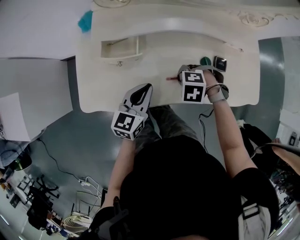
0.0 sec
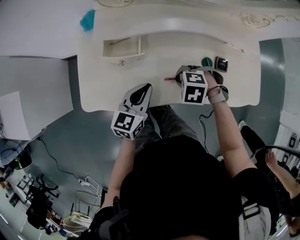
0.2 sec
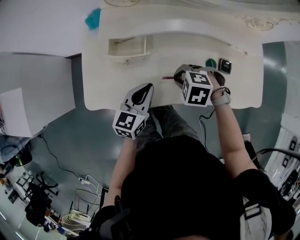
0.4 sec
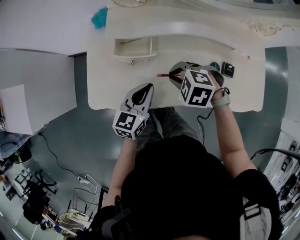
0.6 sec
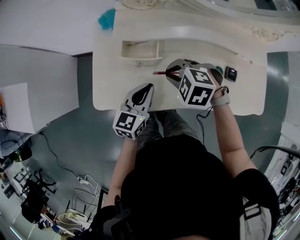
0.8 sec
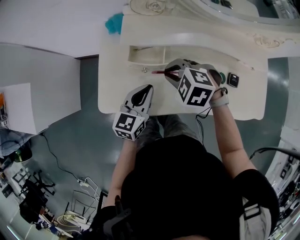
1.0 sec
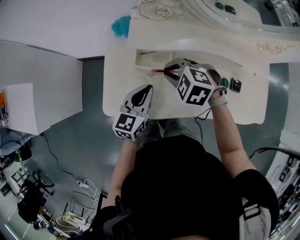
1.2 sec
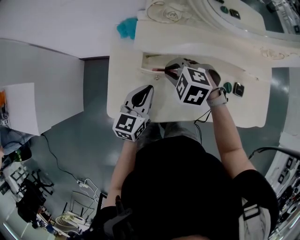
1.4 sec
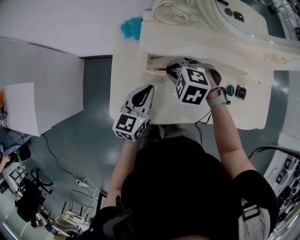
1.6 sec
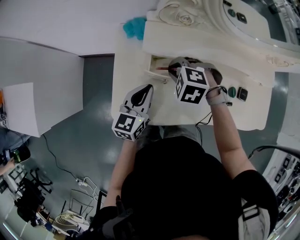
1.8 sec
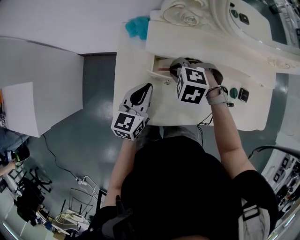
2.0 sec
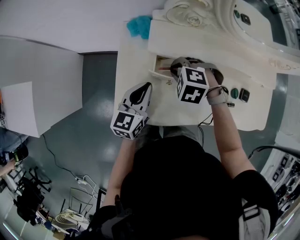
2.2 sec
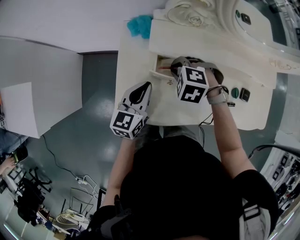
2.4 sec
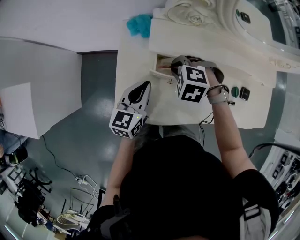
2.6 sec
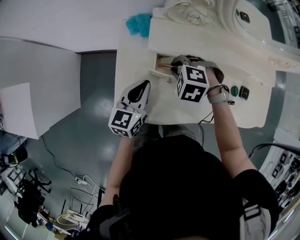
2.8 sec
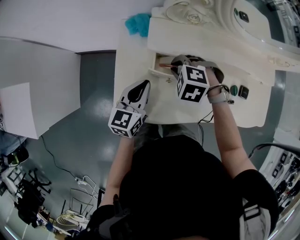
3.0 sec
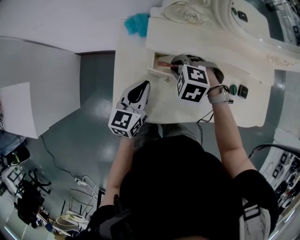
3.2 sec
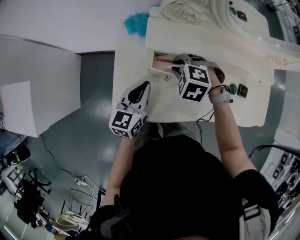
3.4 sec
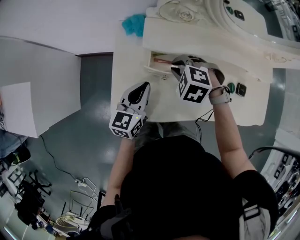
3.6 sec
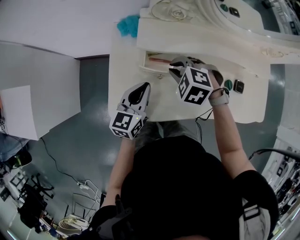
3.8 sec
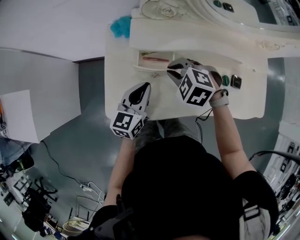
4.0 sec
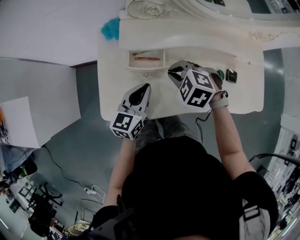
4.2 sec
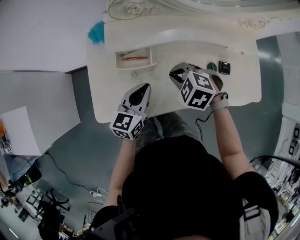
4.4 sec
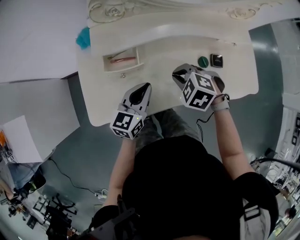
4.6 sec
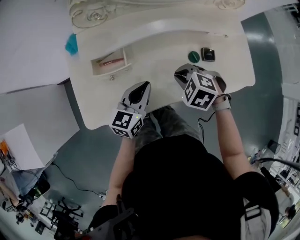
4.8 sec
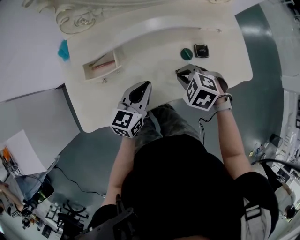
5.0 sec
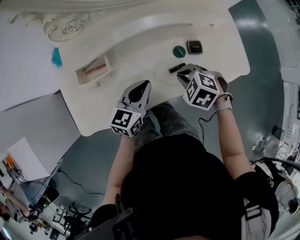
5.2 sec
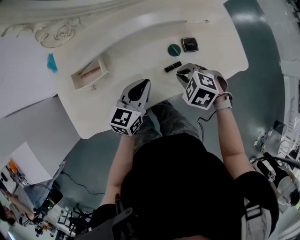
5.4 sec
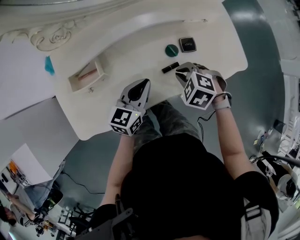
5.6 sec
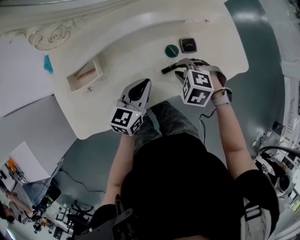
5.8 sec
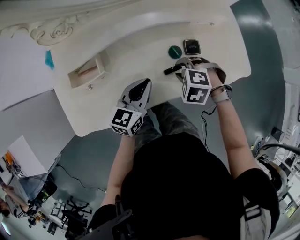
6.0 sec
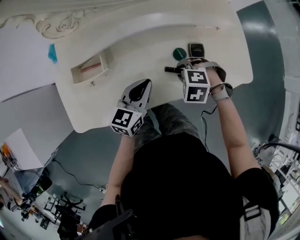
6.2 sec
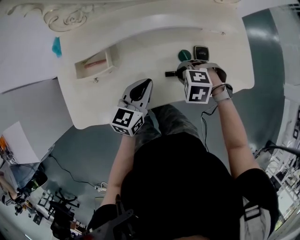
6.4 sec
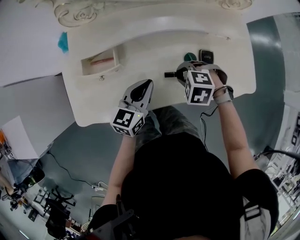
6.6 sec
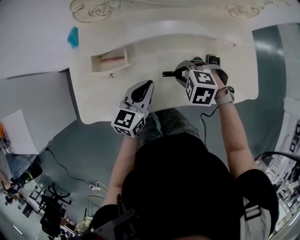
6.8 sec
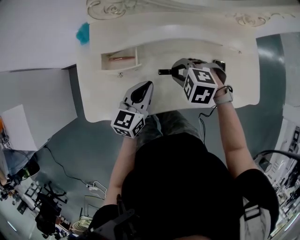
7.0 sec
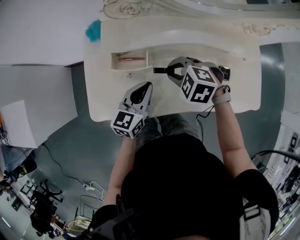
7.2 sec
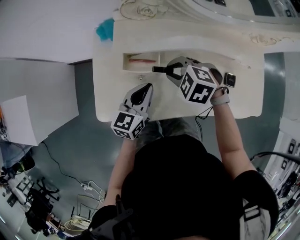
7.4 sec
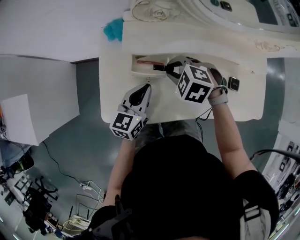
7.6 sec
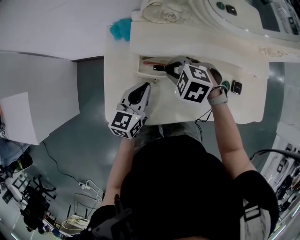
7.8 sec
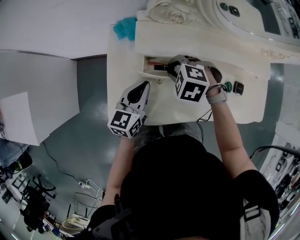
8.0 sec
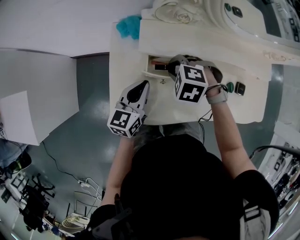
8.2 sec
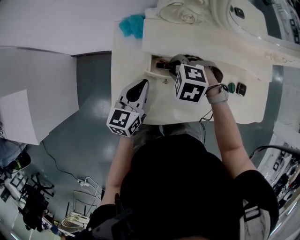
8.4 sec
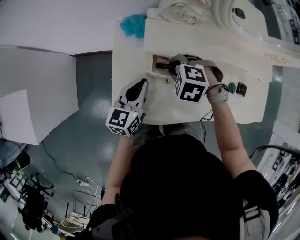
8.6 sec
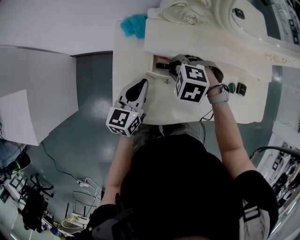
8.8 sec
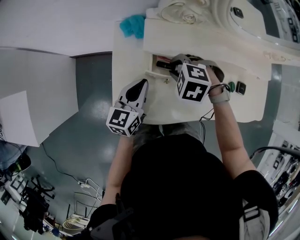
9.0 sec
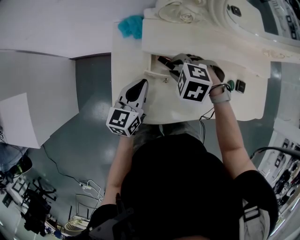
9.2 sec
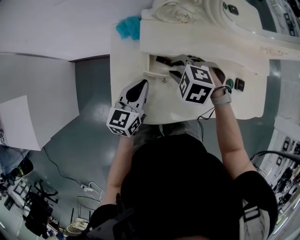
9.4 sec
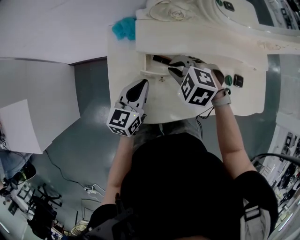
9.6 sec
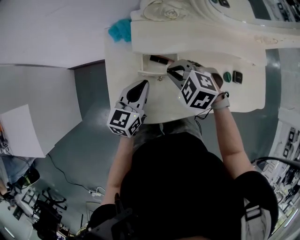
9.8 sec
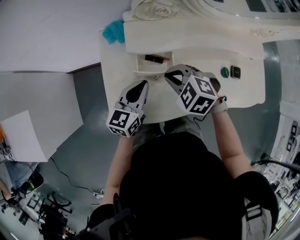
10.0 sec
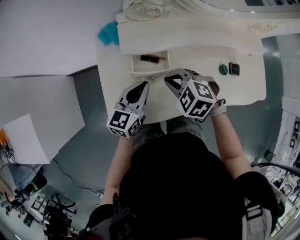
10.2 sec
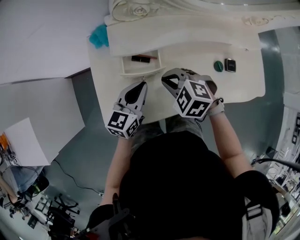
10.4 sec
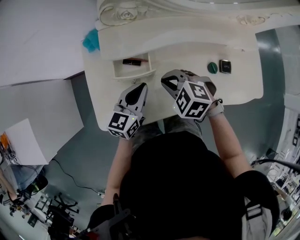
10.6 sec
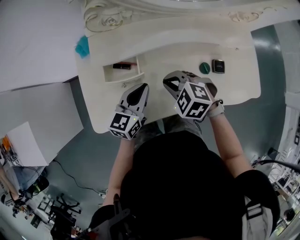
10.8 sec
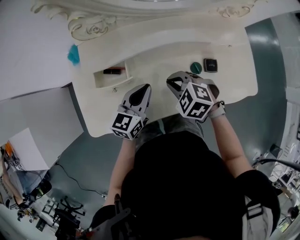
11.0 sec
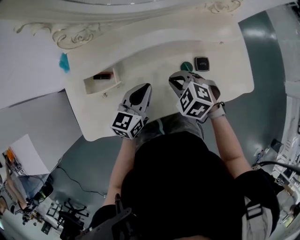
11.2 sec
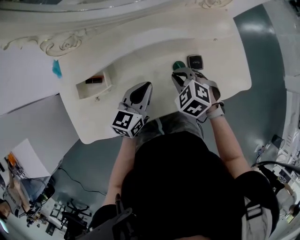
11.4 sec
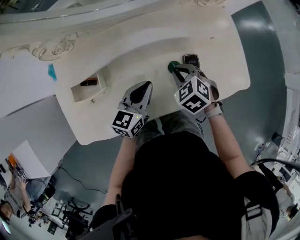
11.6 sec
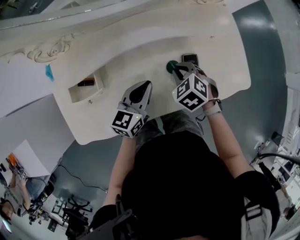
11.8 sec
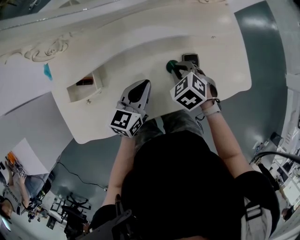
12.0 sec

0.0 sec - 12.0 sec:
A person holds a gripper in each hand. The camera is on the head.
0.0 sec - 1.6 sec: The left gripper ends up approximately 15 cm from where it was. The right gripper moves some 25 cm, and swivels approximately 20 degrees.
1.6 sec - 3.0 sec: The left gripper ends up roughly 5 cm from where it was.
3.0 sec - 4.4 sec: The left gripper ends up approximately 15 cm from where it was; the right gripper changes place by approximately 15 cm.
4.4 sec - 6.0 sec: The right gripper shifts by some 20 cm. The left gripper shifts by roughly 20 cm.
6.0 sec - 7.6 sec: The right gripper changes place by roughly 30 cm; the left gripper ends up some 20 cm from where it was, and changes its angle by roughly 20 degrees.
7.6 sec - 9.0 sec: The left gripper changes place by about 10 cm; the right gripper moves approximately 5 cm.
9.0 sec - 10.4 sec: The right gripper moves roughly 10 cm, and changes its angle by some 20 degrees. Meanwhile the left gripper ends up about 10 cm from where it was.
10.4 sec - 12.0 sec: Both grippers move to the right, some 25 cm. The right gripper changes its angle by roughly 30 degrees.

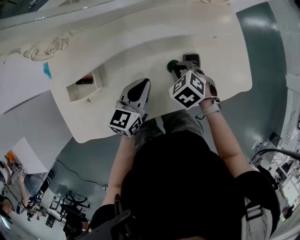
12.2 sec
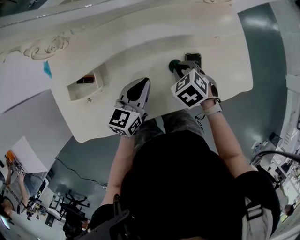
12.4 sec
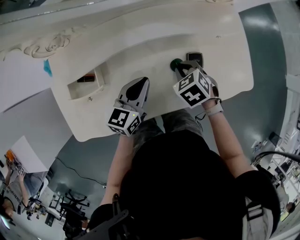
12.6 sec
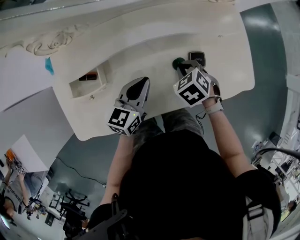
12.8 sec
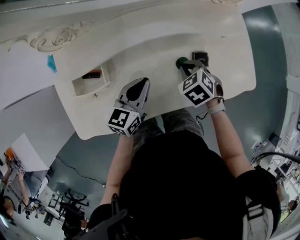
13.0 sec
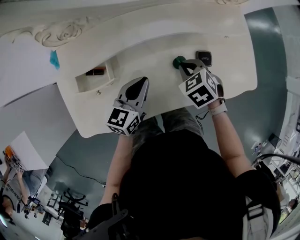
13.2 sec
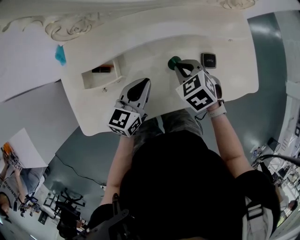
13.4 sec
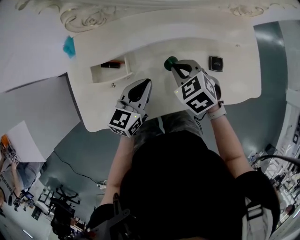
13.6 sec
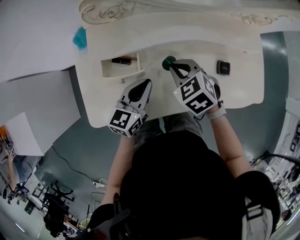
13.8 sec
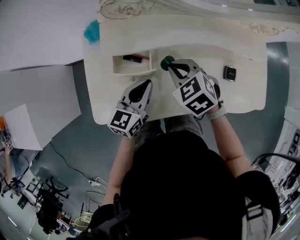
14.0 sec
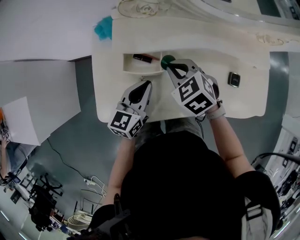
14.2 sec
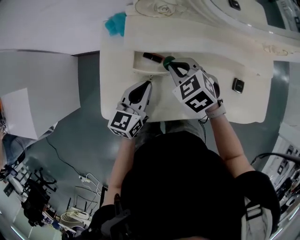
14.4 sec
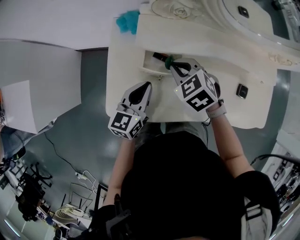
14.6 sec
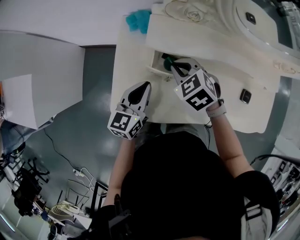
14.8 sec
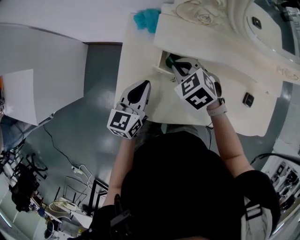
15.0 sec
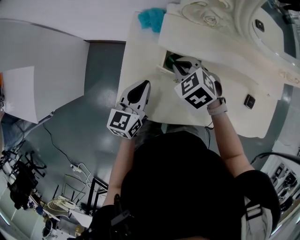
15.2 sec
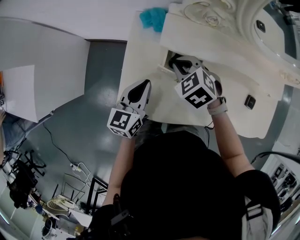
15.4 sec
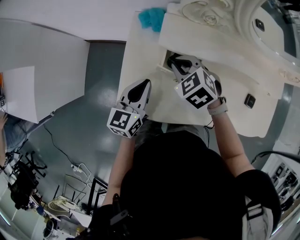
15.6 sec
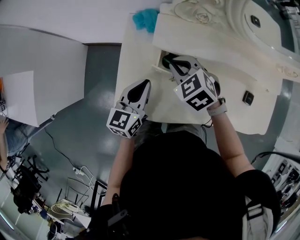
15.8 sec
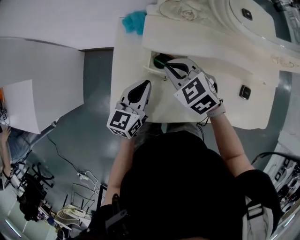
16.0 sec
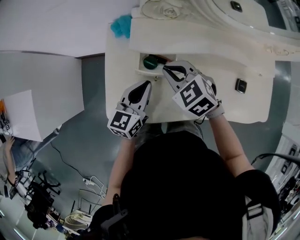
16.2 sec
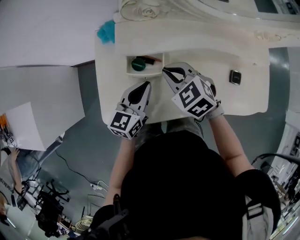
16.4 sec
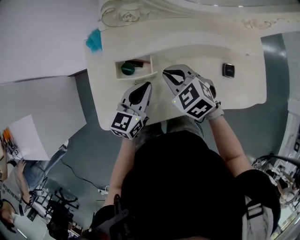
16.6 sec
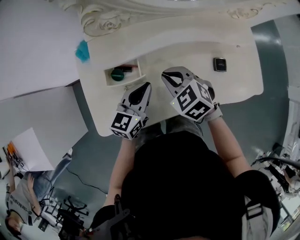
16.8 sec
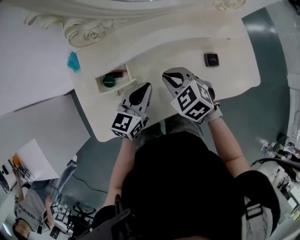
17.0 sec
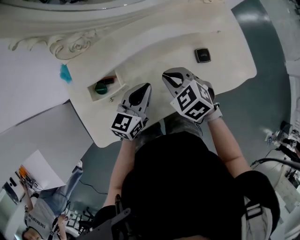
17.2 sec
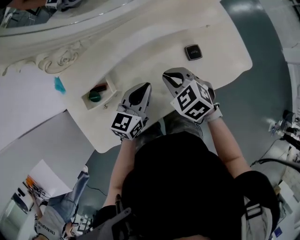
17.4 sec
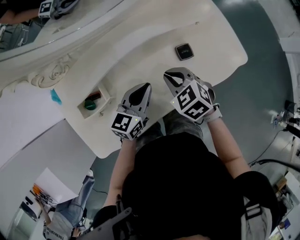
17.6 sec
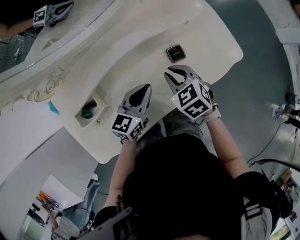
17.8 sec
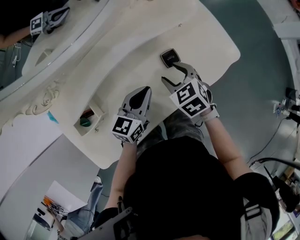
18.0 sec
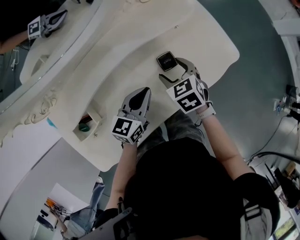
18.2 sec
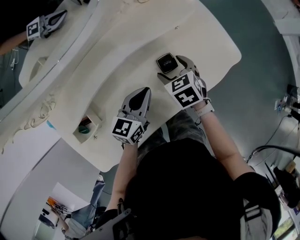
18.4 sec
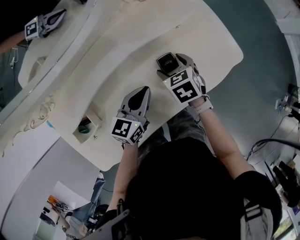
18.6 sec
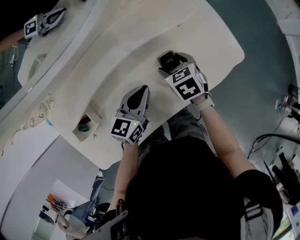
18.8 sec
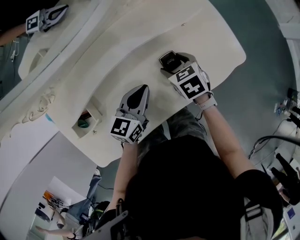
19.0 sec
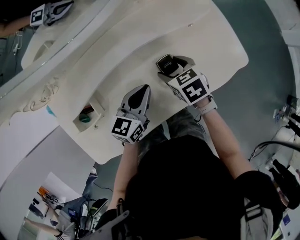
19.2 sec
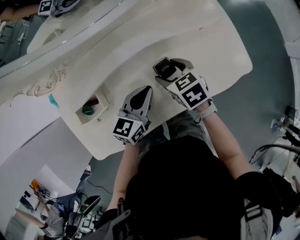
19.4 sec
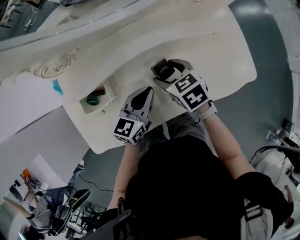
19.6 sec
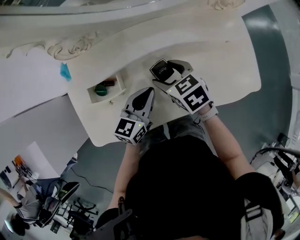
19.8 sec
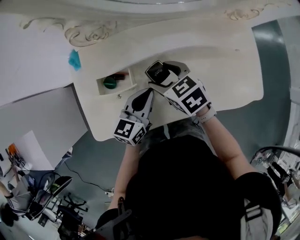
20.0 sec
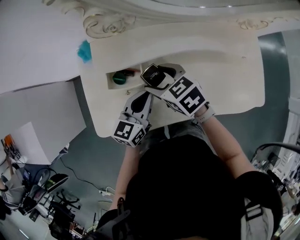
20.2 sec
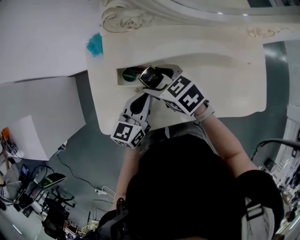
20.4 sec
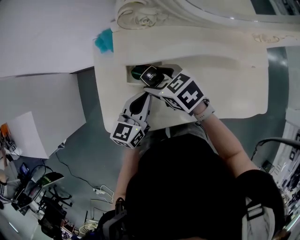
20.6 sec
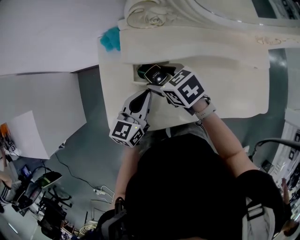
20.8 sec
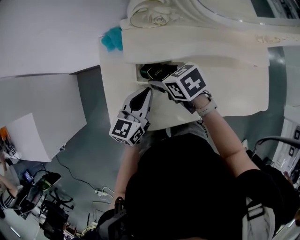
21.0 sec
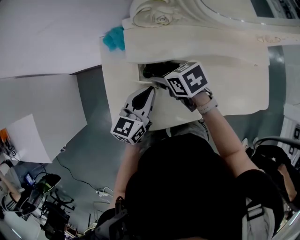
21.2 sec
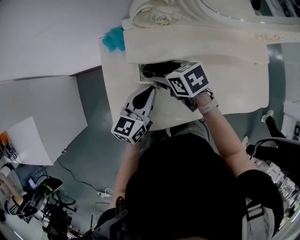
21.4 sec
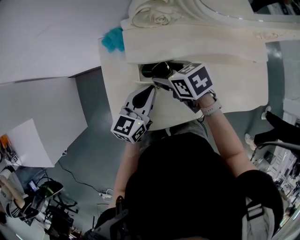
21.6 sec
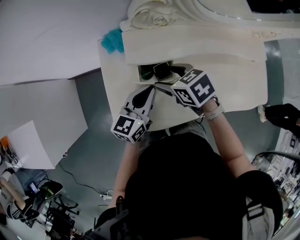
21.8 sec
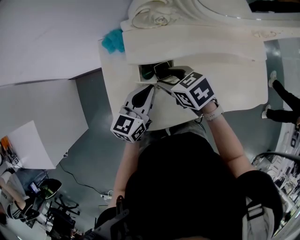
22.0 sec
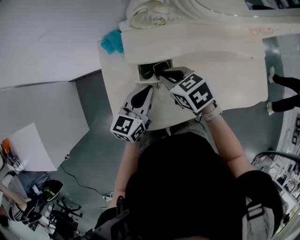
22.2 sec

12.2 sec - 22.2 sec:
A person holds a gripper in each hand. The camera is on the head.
12.2 sec - 13.6 sec: The right gripper is displaced to the left and upward by roughly 15 cm. The left gripper heads to the left, covering approximately 10 cm.
13.6 sec - 15.0 sec: The grippers both shift to the left by about 25 cm. The left gripper turns by about 20 degrees; the right gripper swivels about 20 degrees.
15.0 sec - 16.4 sec: Both grippers travel together to the right, roughly 10 cm.
16.4 sec - 18.0 sec: The left gripper ends up about 30 cm from where it was, and changes its angle by approximately 40 degrees. Meanwhile the right gripper changes place by about 35 cm, rotates roughly 50 degrees, and opens its fingers.
18.0 sec - 19.4 sec: The right gripper is displaced to the left by approximately 5 cm.
19.4 sec - 20.8 sec: The right gripper moves roughly 35 cm, and turns by roughly 30 degrees. Meanwhile the left gripper ends up approximately 25 cm from where it was, and rotates about 30 degrees.
20.8 sec - 22.2 sec: The right gripper closes.

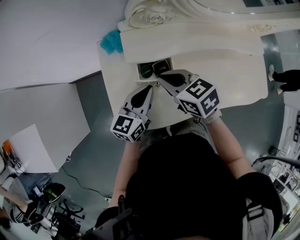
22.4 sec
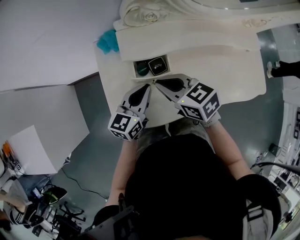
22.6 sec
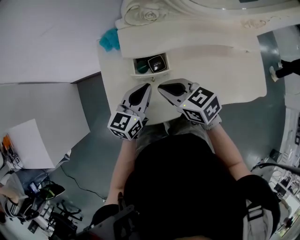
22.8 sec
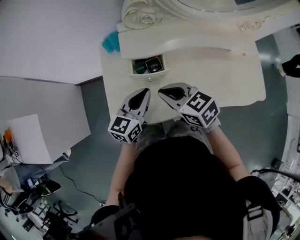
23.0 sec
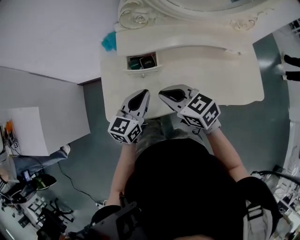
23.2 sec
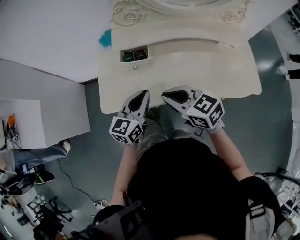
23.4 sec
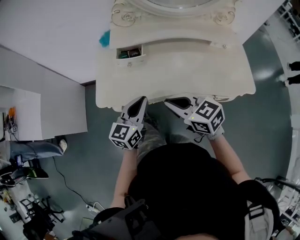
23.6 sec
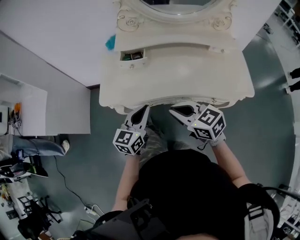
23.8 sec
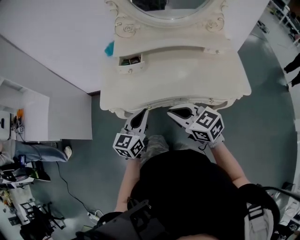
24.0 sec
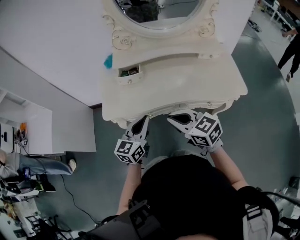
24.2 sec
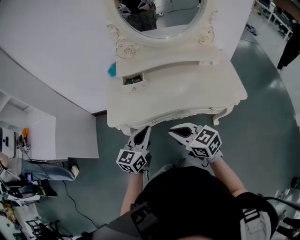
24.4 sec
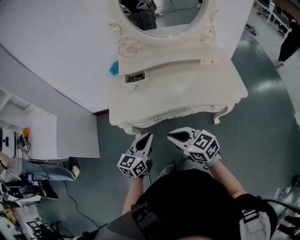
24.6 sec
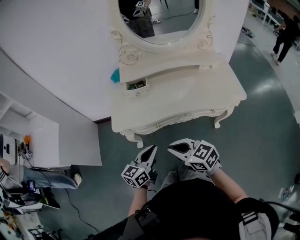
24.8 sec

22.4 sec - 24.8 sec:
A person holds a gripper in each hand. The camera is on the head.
22.4 sec - 23.6 sec: The right gripper shifts approximately 30 cm backward and to the right, and rotates about 20 degrees. Meanwhile the left gripper travels backward by approximately 20 cm.
23.6 sec - 24.8 sec: The right gripper is displaced backward and to the left by approximately 15 cm, while the left gripper shifts approximately 15 cm backward.
